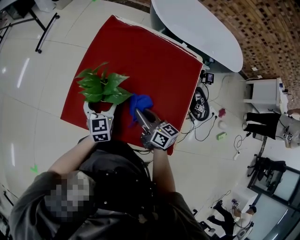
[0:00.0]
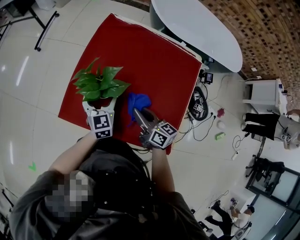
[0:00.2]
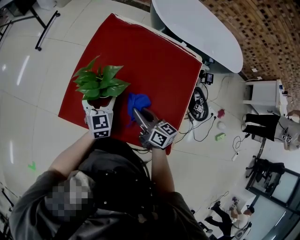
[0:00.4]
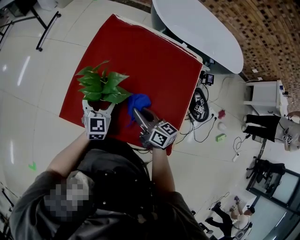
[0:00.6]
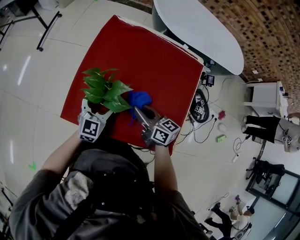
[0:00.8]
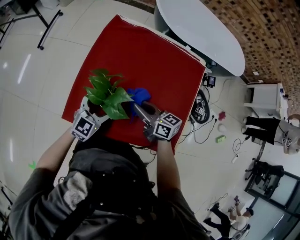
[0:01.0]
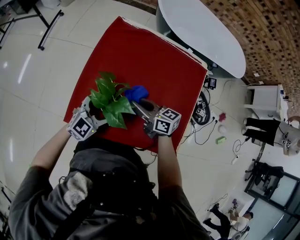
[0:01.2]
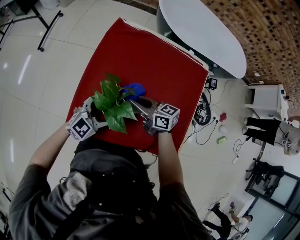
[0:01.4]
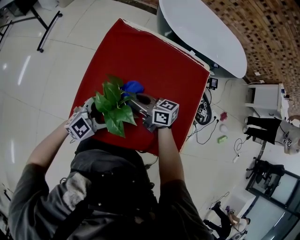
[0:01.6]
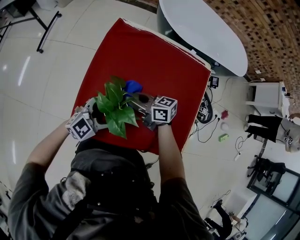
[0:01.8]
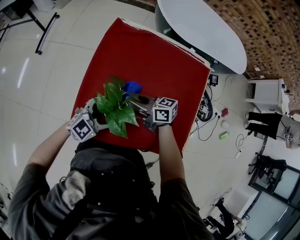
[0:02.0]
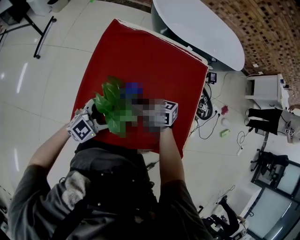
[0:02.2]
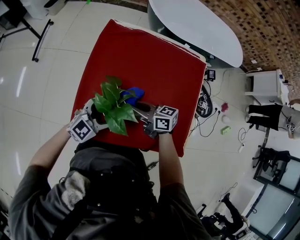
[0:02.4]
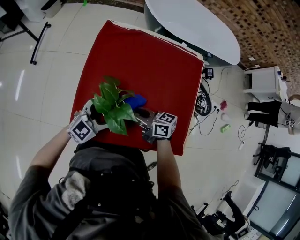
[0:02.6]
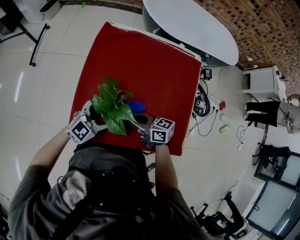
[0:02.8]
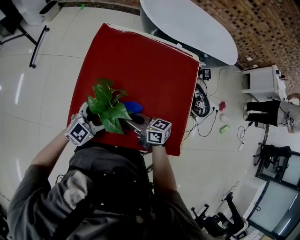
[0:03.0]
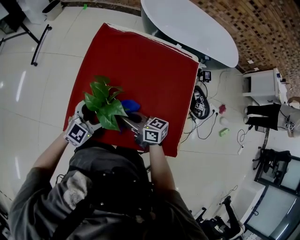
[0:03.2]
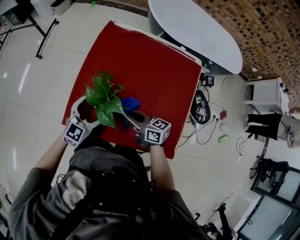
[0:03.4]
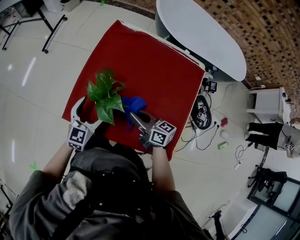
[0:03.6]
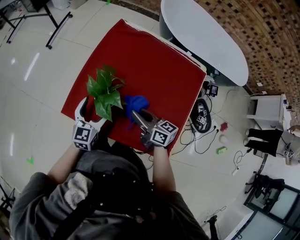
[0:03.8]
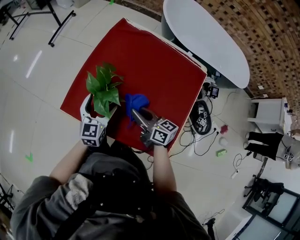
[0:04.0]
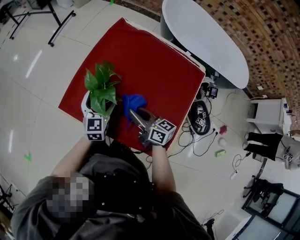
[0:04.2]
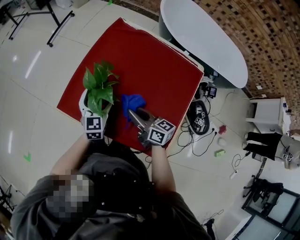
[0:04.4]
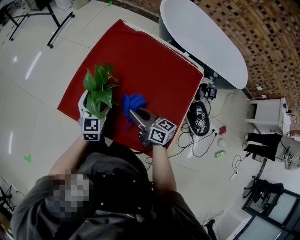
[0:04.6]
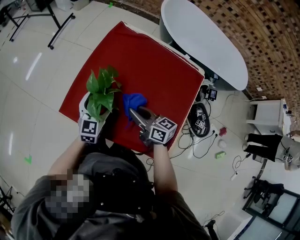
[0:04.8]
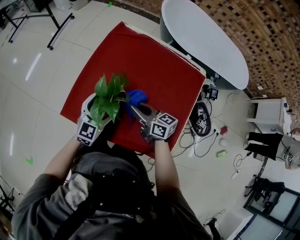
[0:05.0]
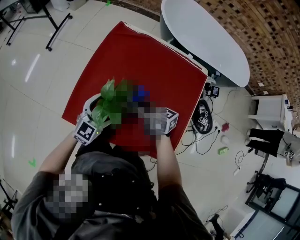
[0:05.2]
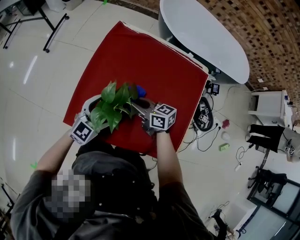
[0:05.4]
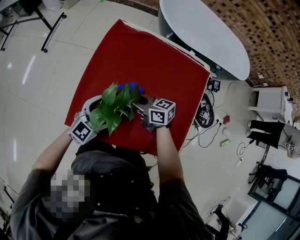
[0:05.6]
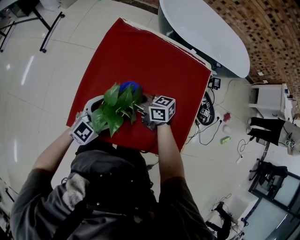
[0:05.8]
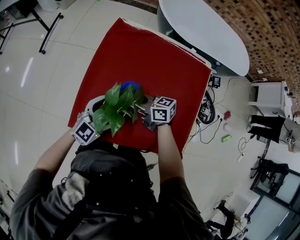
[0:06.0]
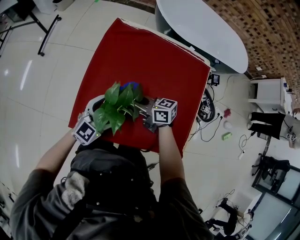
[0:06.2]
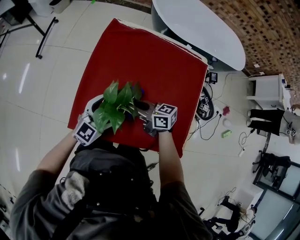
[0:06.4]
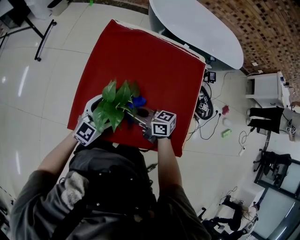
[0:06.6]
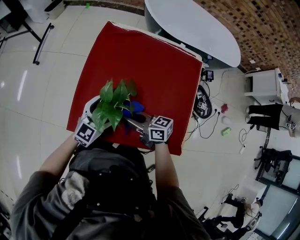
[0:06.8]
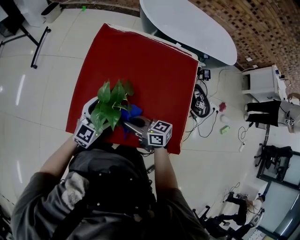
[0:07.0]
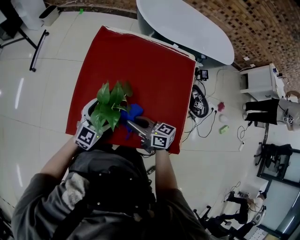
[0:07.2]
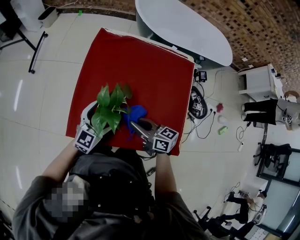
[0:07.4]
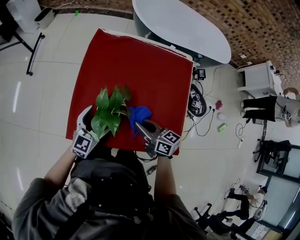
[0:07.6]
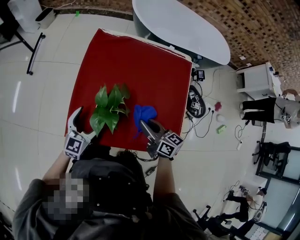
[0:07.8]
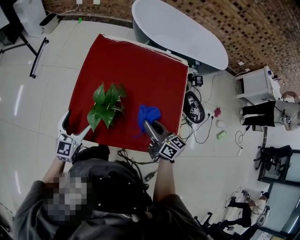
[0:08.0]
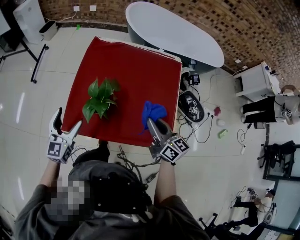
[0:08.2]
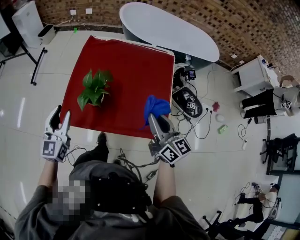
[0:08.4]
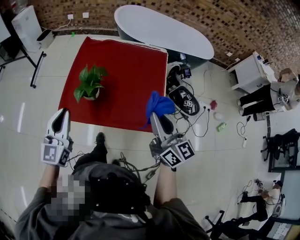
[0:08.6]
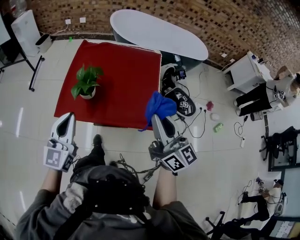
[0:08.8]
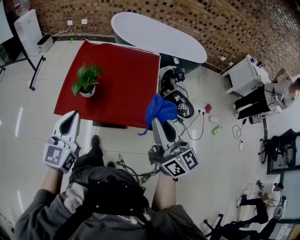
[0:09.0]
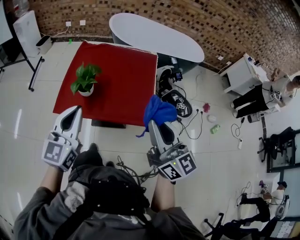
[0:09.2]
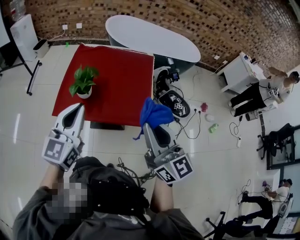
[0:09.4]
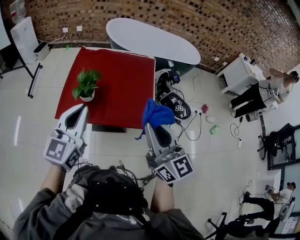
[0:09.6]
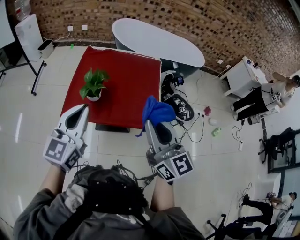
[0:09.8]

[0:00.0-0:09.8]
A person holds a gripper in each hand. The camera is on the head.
0:00.0 to 0:01.4: The right gripper travels forward and to the left by some 15 cm. The left gripper swivels roughly 60 degrees.
0:01.4 to 0:02.8: The right gripper changes place by approximately 5 cm.
0:02.8 to 0:04.2: The left gripper rotates roughly 70 degrees, while the right gripper changes place by roughly 10 cm.
0:04.2 to 0:05.6: The right gripper travels forward and to the left by approximately 15 cm, while the left gripper rotates approximately 50 degrees.
0:05.6 to 0:07.0: The right gripper is displaced backward by some 10 cm.
0:07.0 to 0:08.4: The left gripper shifts about 25 cm upward, backward and to the left, changes its angle by approximately 30 degrees, and closes; the right gripper moves to the right, upward and backward, some 30 cm, and turns by roughly 50 degrees.
0:08.4 to 0:09.8: The left gripper heads upward, backward and to the right, covering some 25 cm, and closes, while the right gripper moves upward and backward, roughly 25 cm.

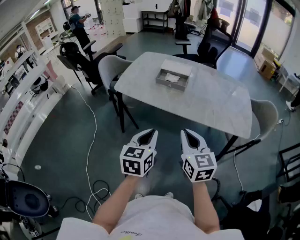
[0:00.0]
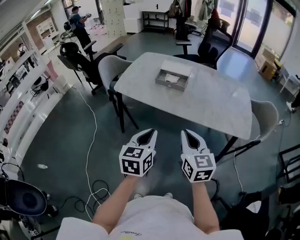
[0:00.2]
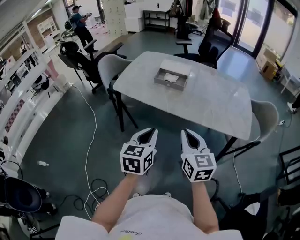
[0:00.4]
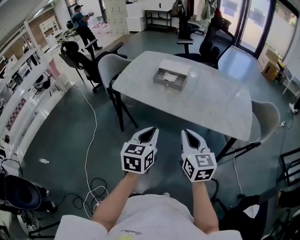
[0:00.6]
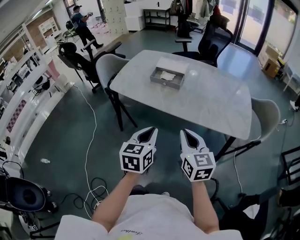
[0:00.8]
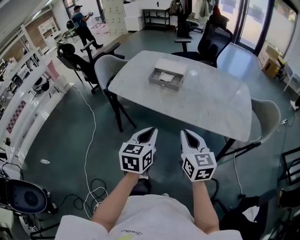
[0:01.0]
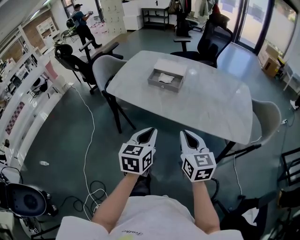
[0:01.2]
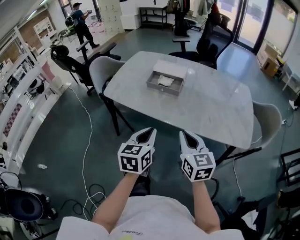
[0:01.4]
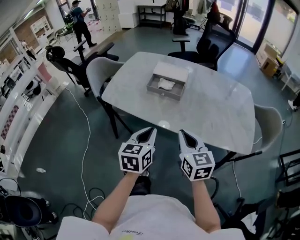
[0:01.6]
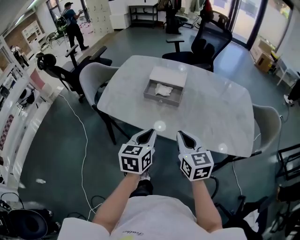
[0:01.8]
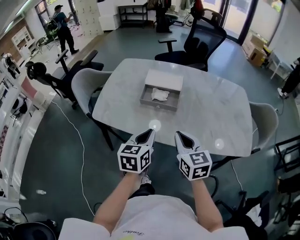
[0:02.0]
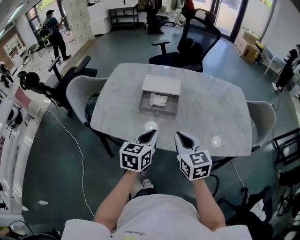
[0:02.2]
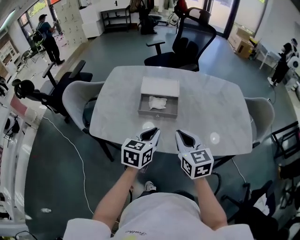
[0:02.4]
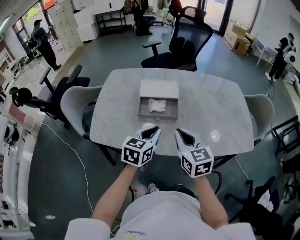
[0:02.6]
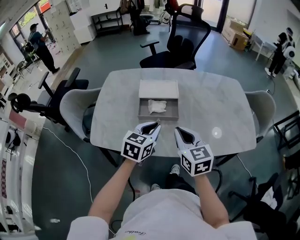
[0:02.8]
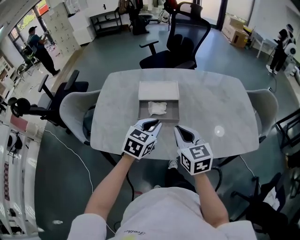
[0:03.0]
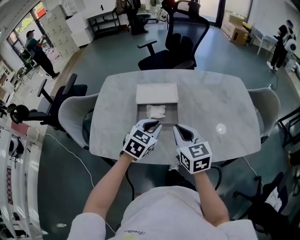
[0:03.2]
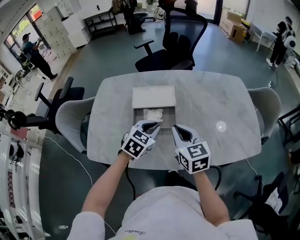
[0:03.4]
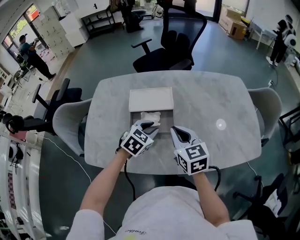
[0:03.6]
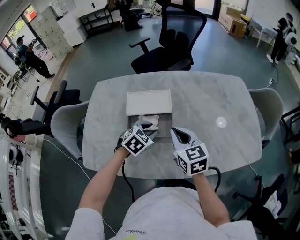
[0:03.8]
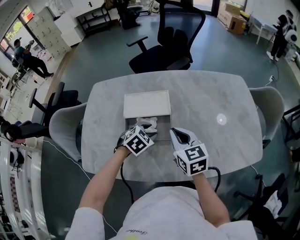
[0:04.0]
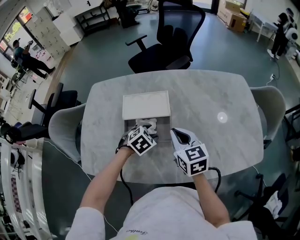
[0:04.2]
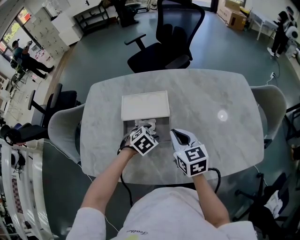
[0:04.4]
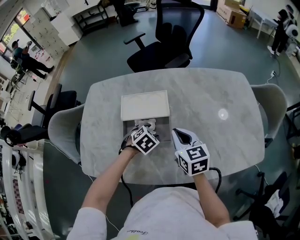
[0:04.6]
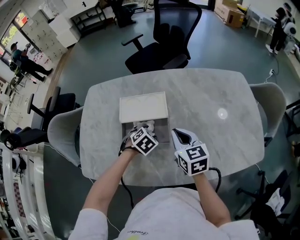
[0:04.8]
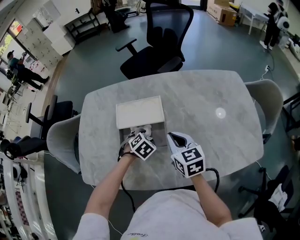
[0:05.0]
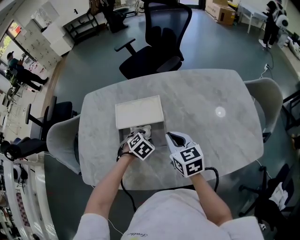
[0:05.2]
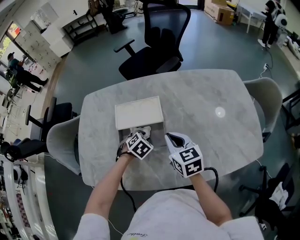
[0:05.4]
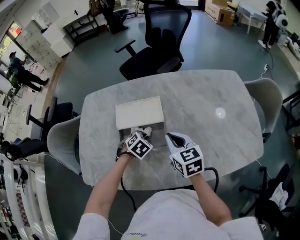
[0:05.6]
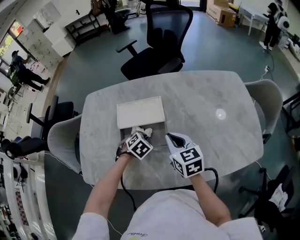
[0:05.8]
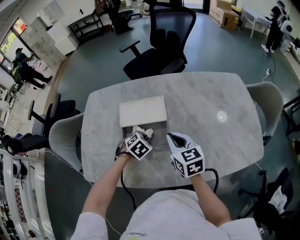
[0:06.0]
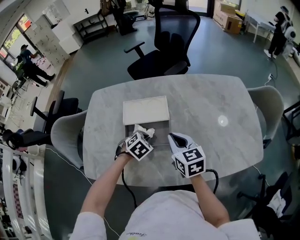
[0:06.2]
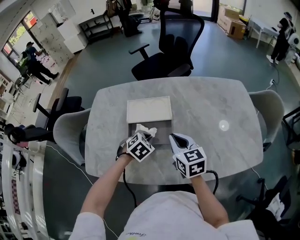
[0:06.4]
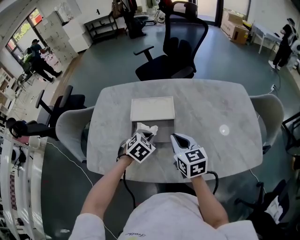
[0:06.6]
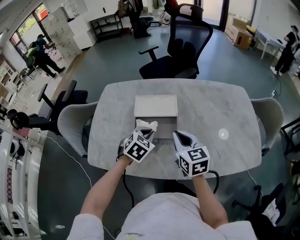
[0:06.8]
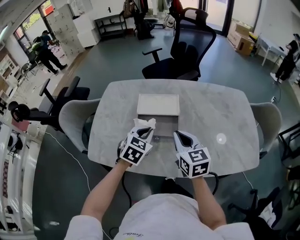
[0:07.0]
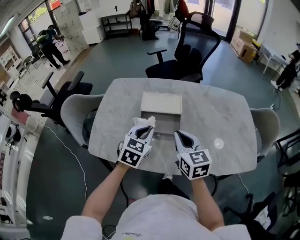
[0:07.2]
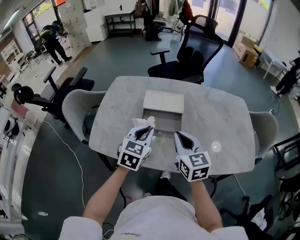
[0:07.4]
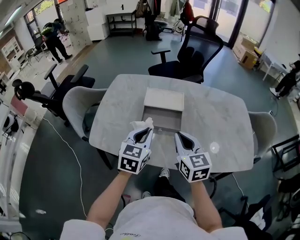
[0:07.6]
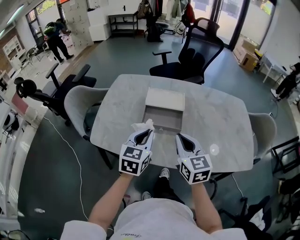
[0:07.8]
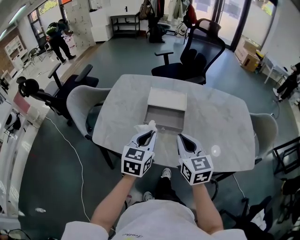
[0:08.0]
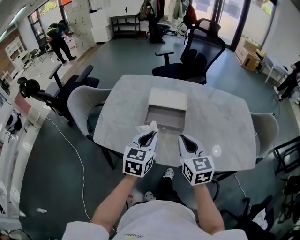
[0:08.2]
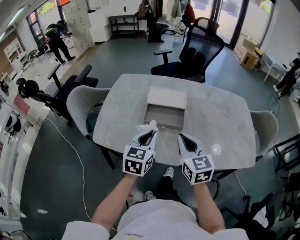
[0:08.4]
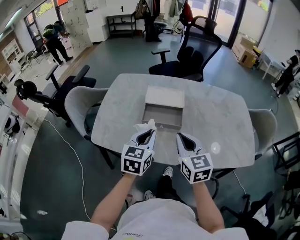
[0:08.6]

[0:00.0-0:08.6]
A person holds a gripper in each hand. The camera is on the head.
0:00.0 to 0:01.4: Both grippers move forward and to the right, about 10 cm.
0:01.4 to 0:02.8: The right gripper is displaced forward and to the left by roughly 25 cm; the left gripper heads forward, covering about 30 cm, and changes its angle by approximately 30 degrees.
0:02.8 to 0:04.4: Both grippers move forward and downward, approximately 20 cm. The left gripper points its fingers some 40 degrees further downward, and opens.
0:04.4 to 0:05.8: The left gripper closes.
0:05.8 to 0:07.2: The left gripper travels upward and backward by approximately 20 cm, and angles its fingers upward, by some 40 degrees. Meanwhile the right gripper moves backward and upward, about 15 cm.
0:07.2 to 0:08.6: The grippers both shift backward by some 5 cm.

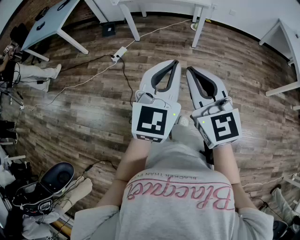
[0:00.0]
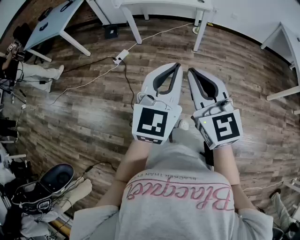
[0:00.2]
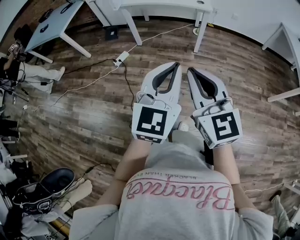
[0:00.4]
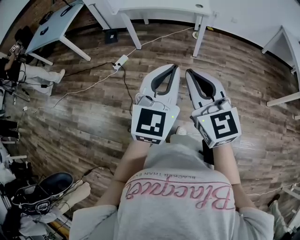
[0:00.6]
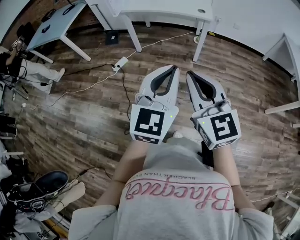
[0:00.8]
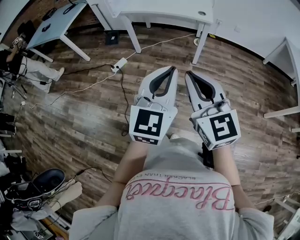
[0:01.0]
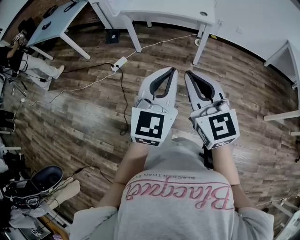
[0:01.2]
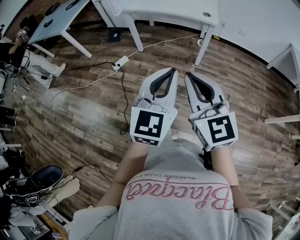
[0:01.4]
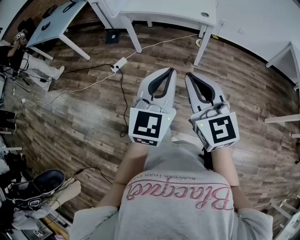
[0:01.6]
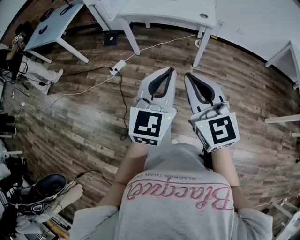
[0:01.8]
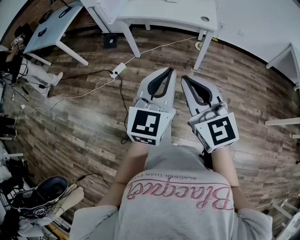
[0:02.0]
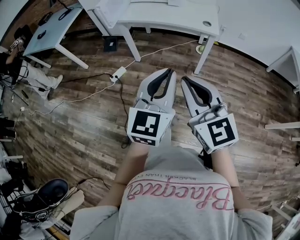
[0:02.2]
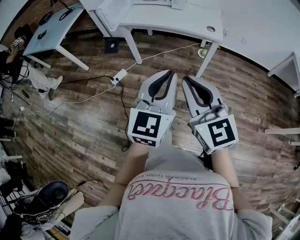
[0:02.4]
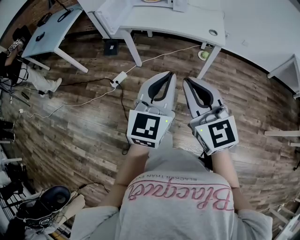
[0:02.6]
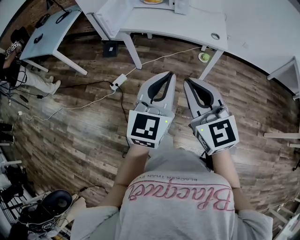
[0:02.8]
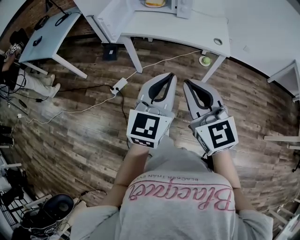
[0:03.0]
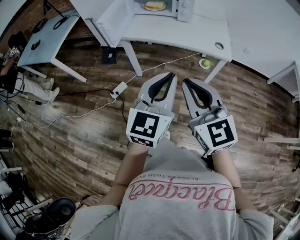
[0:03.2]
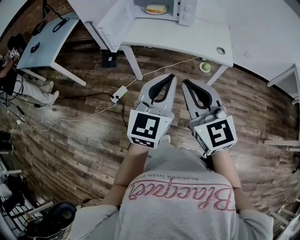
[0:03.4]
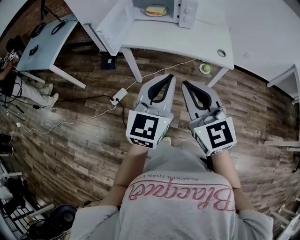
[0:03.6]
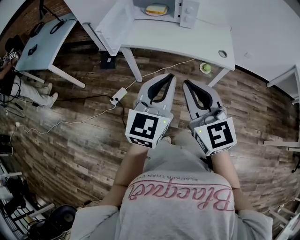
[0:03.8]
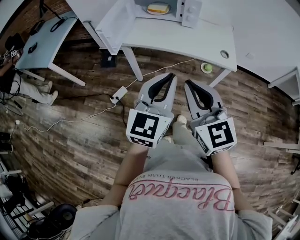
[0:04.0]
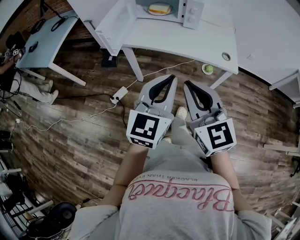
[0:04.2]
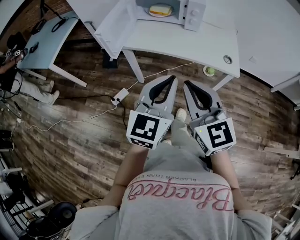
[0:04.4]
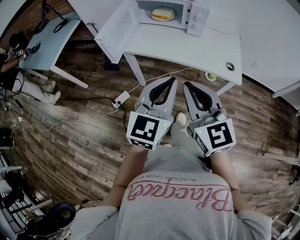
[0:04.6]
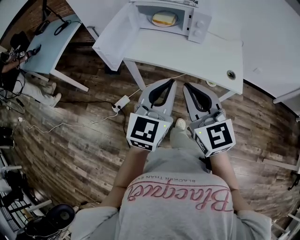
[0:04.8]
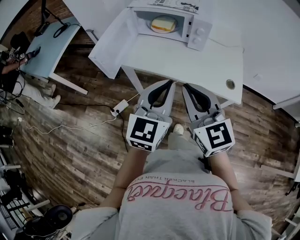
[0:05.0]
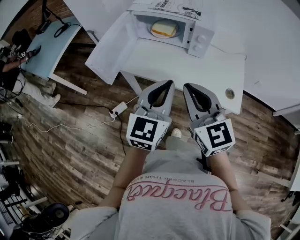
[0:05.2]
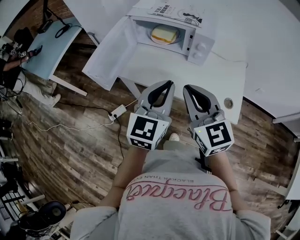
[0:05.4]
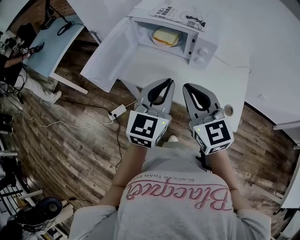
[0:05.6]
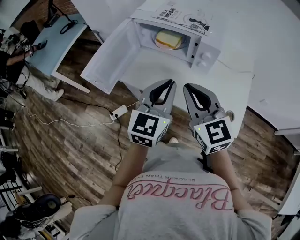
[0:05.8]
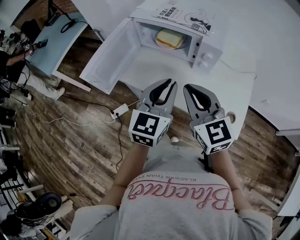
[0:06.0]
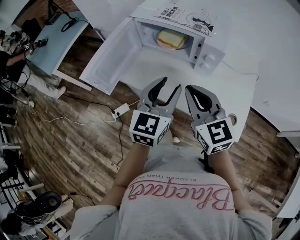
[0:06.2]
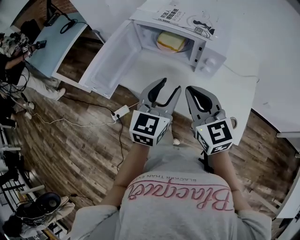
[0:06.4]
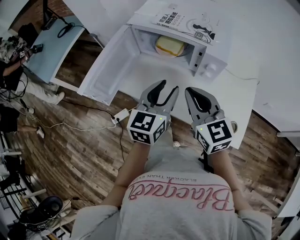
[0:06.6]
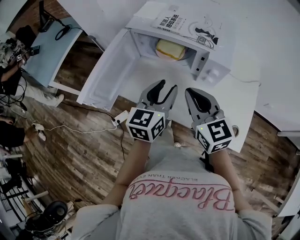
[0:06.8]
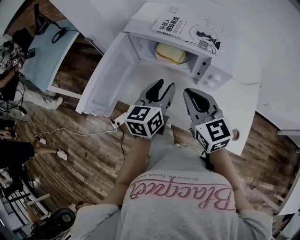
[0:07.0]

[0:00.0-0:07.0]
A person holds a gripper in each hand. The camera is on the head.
0:00.0 to 0:01.4: The grippers both shift forward and to the right by about 15 cm.
0:01.4 to 0:02.8: Both grippers travel together forward, approximately 25 cm.
0:02.8 to 0:04.2: The grippers both shift forward by some 15 cm.
0:04.2 to 0:05.6: The two grippers go approximately 30 cm forward.
0:05.6 to 0:07.0: The right gripper travels forward by about 15 cm, while the left gripper moves forward and downward, roughly 20 cm, swivels about 20 degrees, and opens up.
